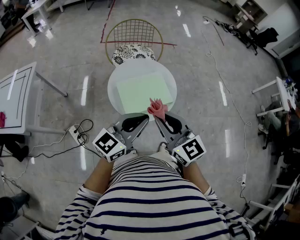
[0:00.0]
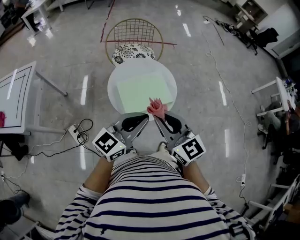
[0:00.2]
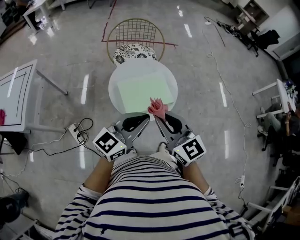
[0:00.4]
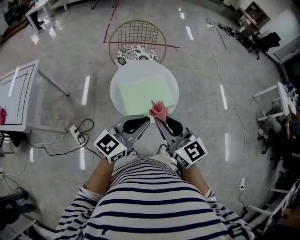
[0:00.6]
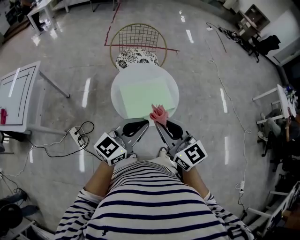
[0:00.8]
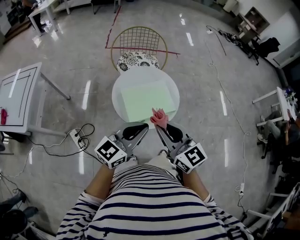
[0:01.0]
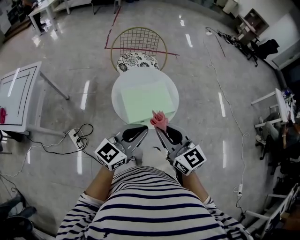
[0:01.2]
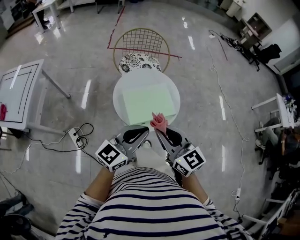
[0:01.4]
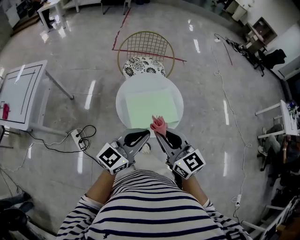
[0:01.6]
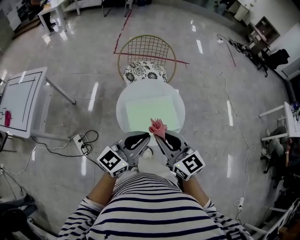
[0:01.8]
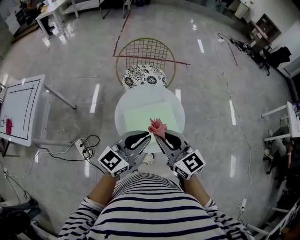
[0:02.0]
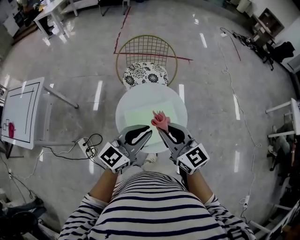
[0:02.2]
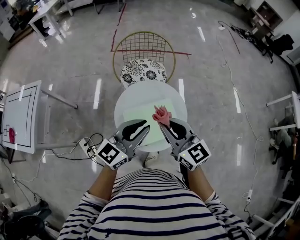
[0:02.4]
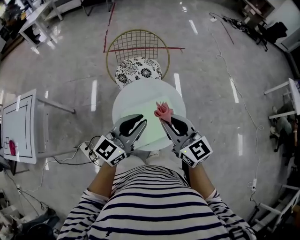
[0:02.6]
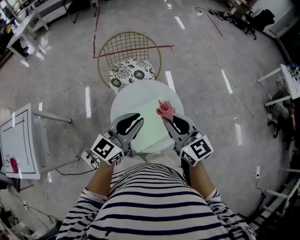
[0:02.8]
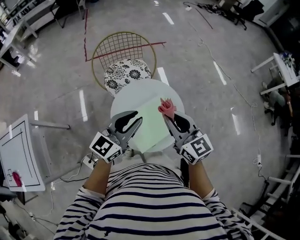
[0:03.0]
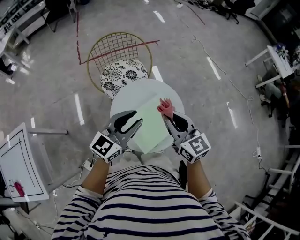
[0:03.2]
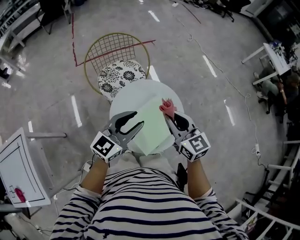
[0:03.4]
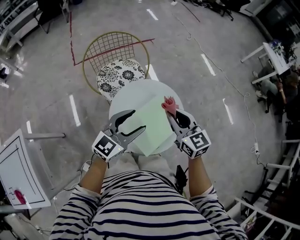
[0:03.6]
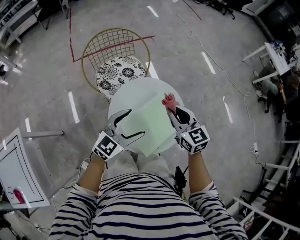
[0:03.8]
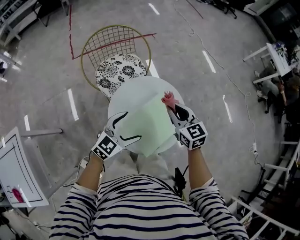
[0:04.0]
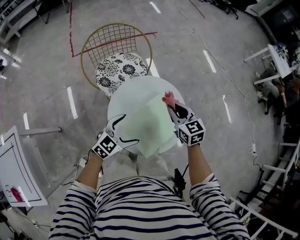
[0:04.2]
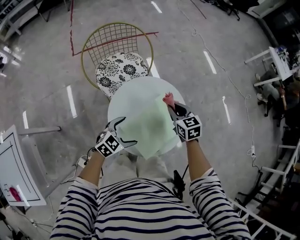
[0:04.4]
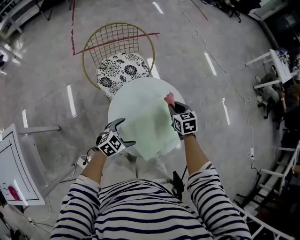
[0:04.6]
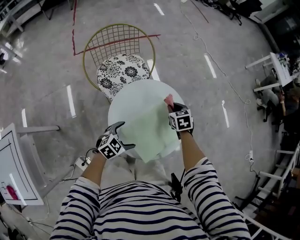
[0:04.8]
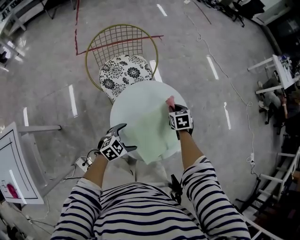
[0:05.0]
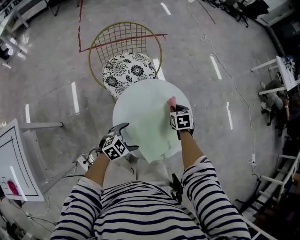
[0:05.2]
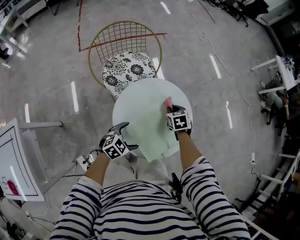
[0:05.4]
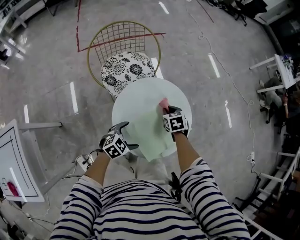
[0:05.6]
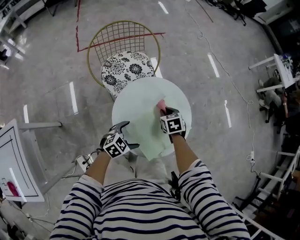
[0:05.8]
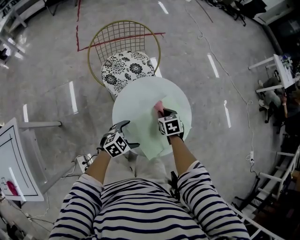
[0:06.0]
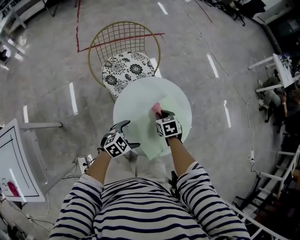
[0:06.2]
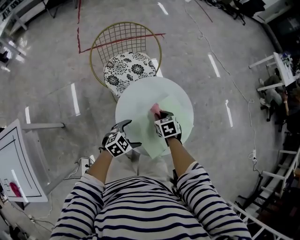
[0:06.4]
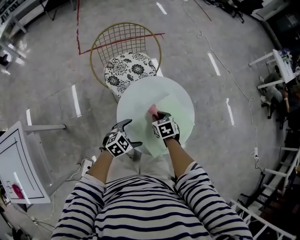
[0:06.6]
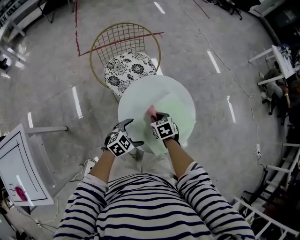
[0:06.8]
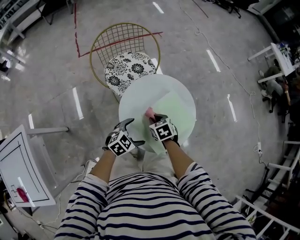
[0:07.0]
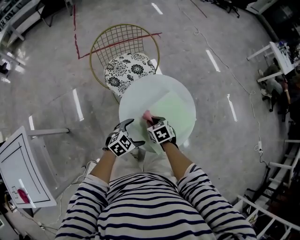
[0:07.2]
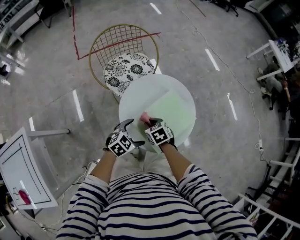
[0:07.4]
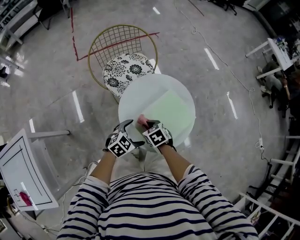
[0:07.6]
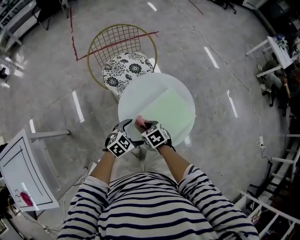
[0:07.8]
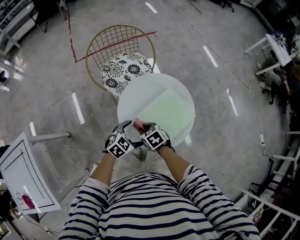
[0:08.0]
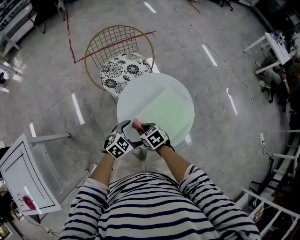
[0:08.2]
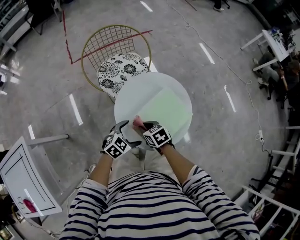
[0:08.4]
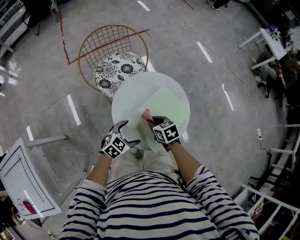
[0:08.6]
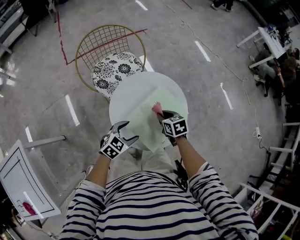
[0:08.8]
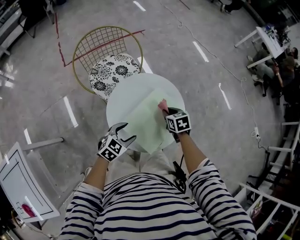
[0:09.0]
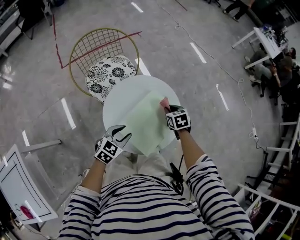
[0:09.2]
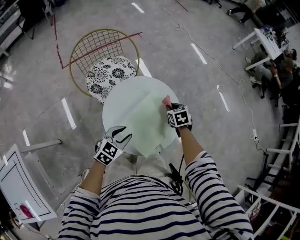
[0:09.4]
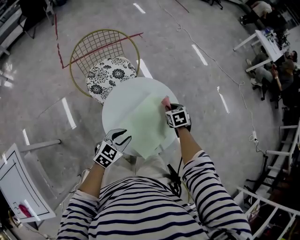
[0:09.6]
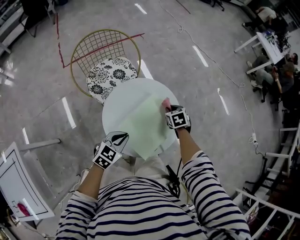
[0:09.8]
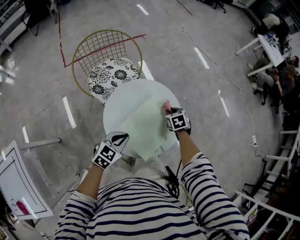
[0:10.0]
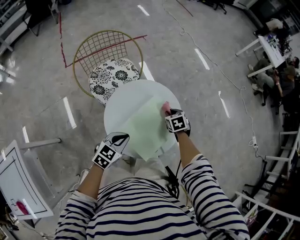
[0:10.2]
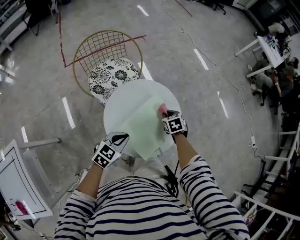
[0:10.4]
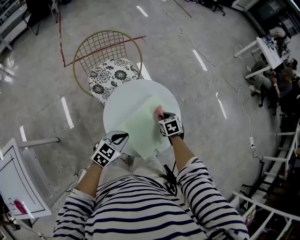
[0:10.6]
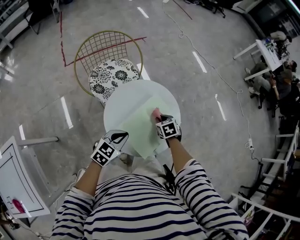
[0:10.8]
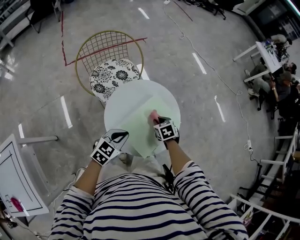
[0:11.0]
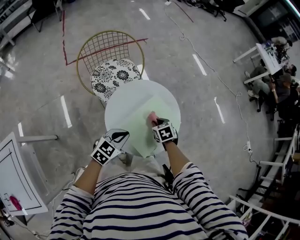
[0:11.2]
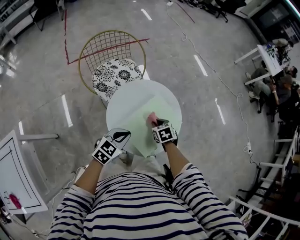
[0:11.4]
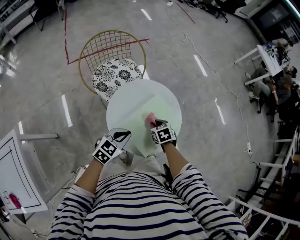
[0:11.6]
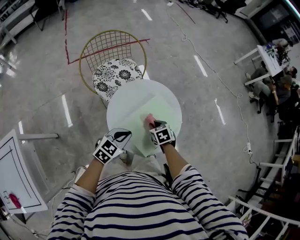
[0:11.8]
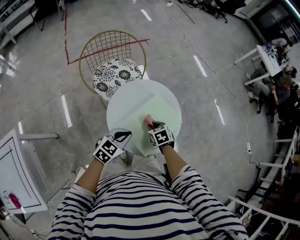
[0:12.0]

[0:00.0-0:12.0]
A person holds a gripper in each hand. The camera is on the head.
0:00.0 to 0:01.6: The grippers make only small movements.
0:01.6 to 0:03.0: Both grippers travel together forward, about 20 cm. The right gripper swivels roughly 20 degrees.
0:03.0 to 0:04.4: The right gripper travels downward and forward by roughly 25 cm, and swivels roughly 30 degrees; the left gripper travels downward by approximately 25 cm, angles its fingers downward, by some 40 degrees, and opens its fingers.
0:04.4 to 0:06.0: The right gripper shifts some 10 cm downward, and changes its angle by about 20 degrees.
0:06.0 to 0:07.6: The right gripper travels backward and to the left by about 15 cm.
0:07.6 to 0:09.0: The right gripper goes approximately 20 cm to the right and forward, and changes its angle by about 20 degrees. The left gripper closes up.
0:09.0 to 0:10.4: The right gripper shifts by about 5 cm. The left gripper closes up.
0:10.4 to 0:12.0: The right gripper travels backward and to the left by about 15 cm.

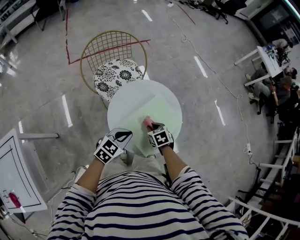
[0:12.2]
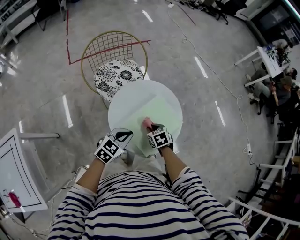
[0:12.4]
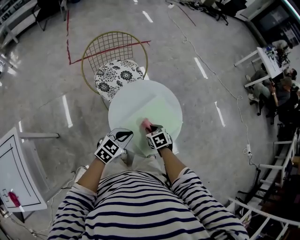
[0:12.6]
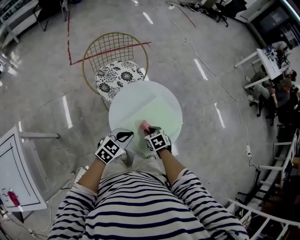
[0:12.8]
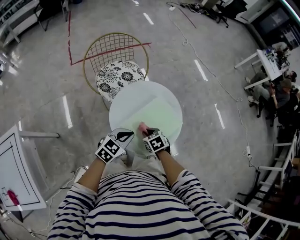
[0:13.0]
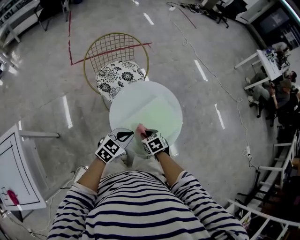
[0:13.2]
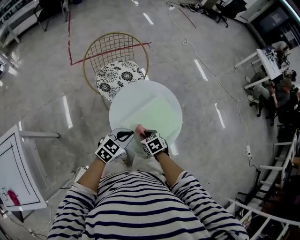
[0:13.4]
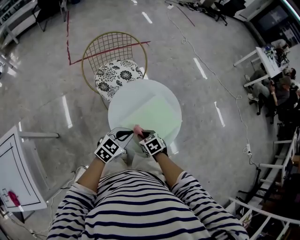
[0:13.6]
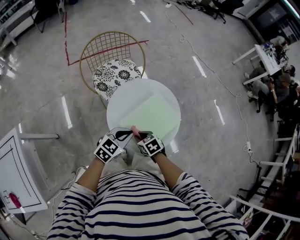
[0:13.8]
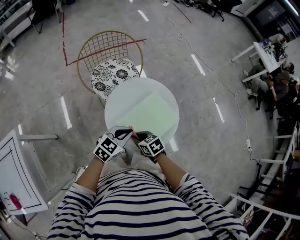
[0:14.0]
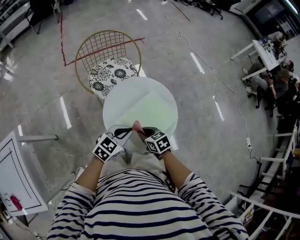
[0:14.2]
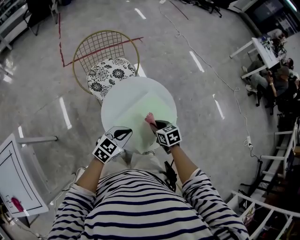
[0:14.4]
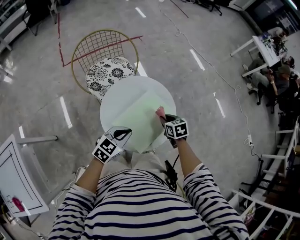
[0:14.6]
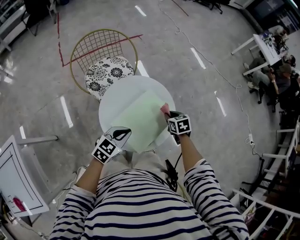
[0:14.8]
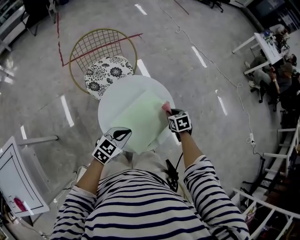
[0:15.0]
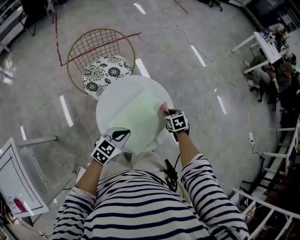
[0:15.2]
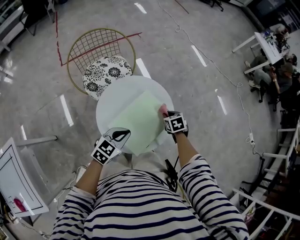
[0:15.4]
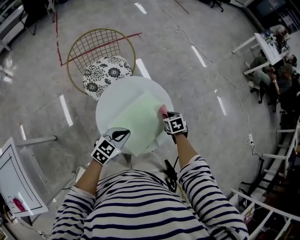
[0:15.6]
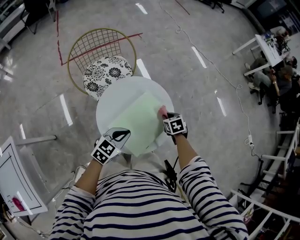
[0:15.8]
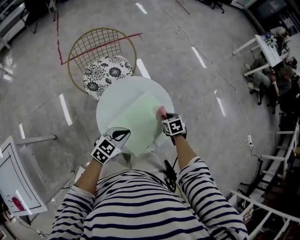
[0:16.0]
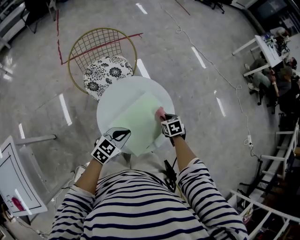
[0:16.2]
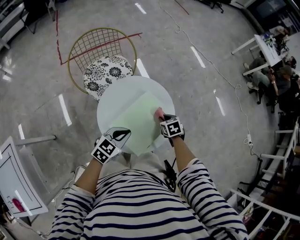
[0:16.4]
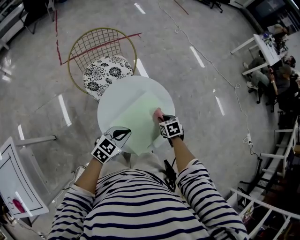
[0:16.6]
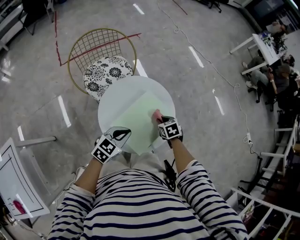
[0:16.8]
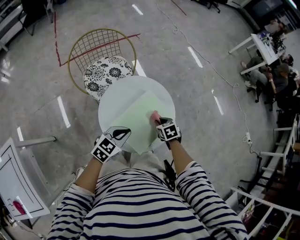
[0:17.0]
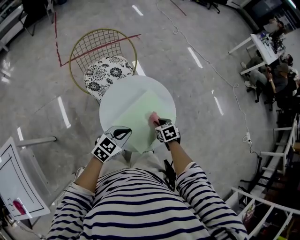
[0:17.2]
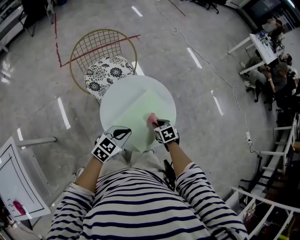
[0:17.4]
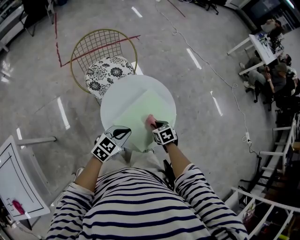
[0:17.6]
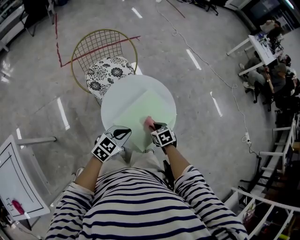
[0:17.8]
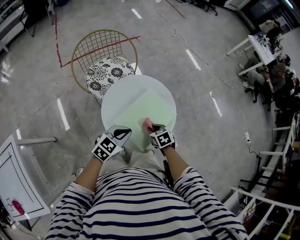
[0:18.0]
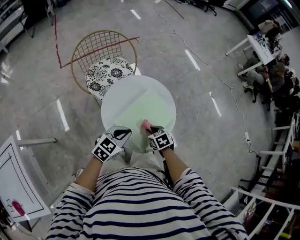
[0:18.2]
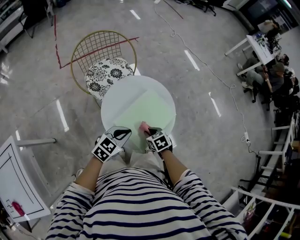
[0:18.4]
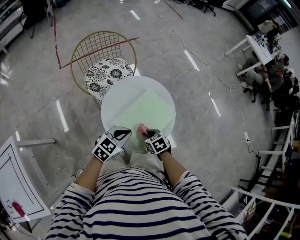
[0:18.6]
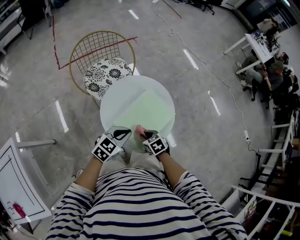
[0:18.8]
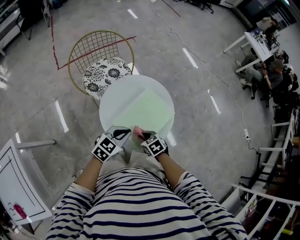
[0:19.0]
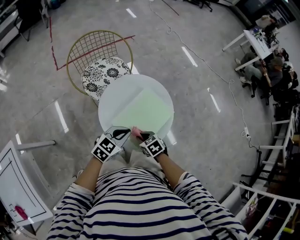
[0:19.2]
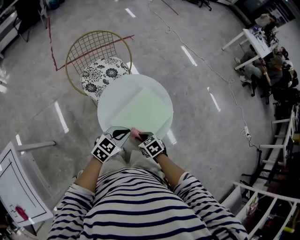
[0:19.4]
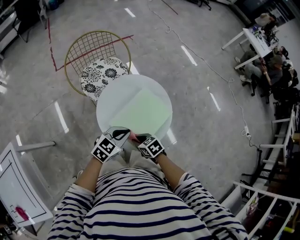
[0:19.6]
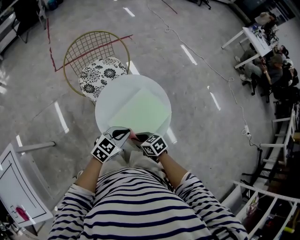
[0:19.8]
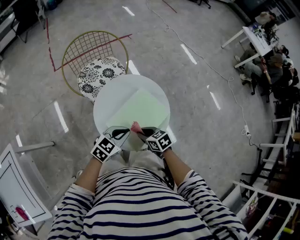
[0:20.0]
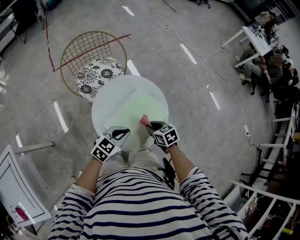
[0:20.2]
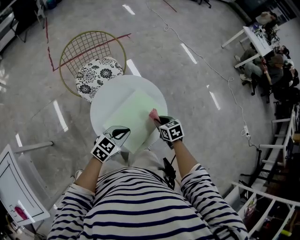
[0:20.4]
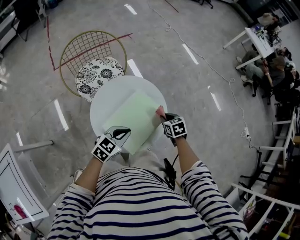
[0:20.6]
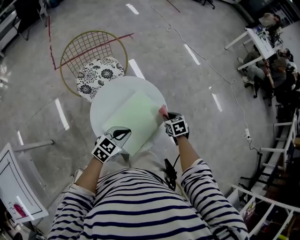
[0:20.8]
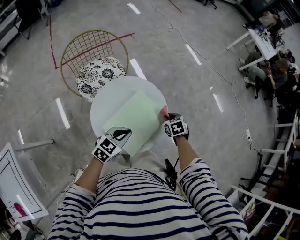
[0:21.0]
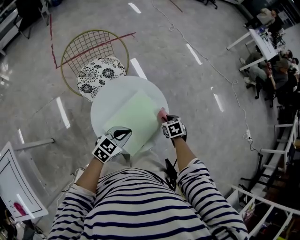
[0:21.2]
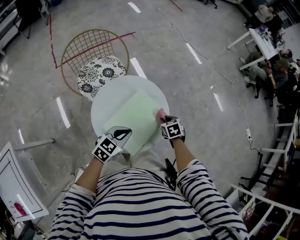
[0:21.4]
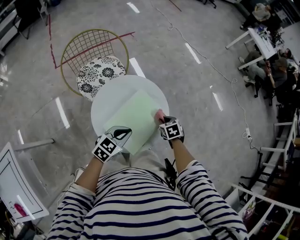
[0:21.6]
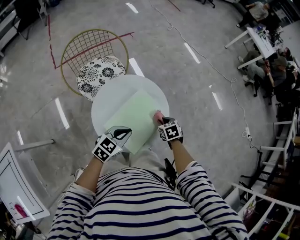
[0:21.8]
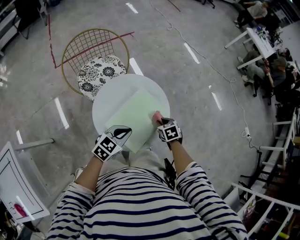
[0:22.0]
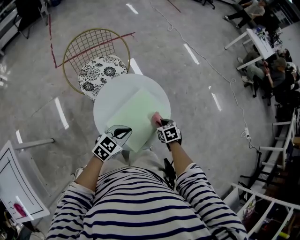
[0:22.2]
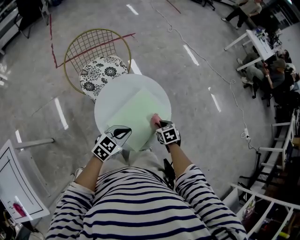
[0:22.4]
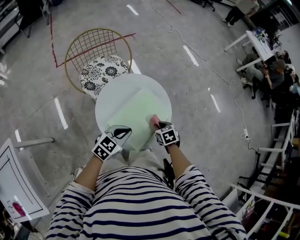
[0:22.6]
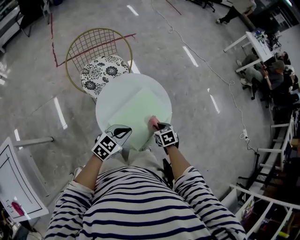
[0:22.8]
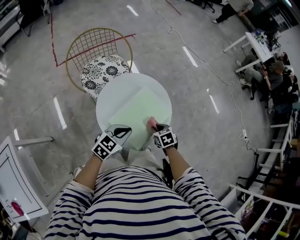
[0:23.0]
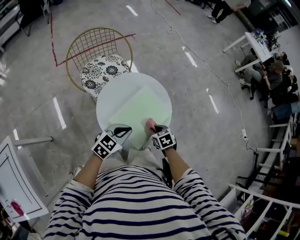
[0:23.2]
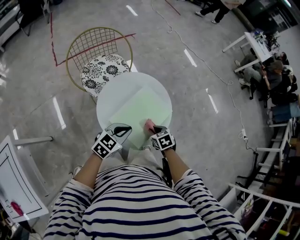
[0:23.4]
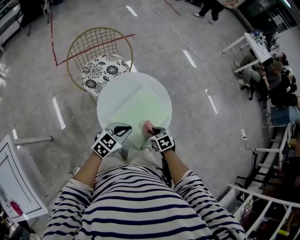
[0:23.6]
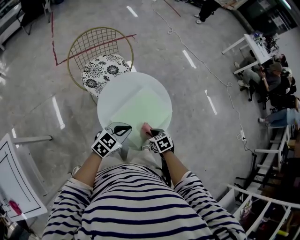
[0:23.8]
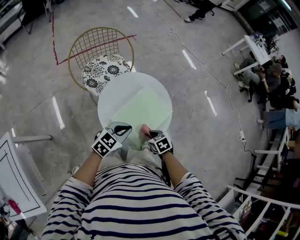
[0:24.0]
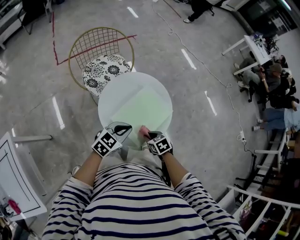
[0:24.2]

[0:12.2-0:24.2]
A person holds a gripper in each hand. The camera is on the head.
0:12.2 to 0:13.8: The right gripper shifts approximately 10 cm backward and to the left.
0:13.8 to 0:15.2: The left gripper moves some 5 cm, while the right gripper shifts about 25 cm to the right and forward, and rotates roughly 20 degrees.
0:15.2 to 0:16.6: The right gripper shifts by approximately 5 cm.
0:16.6 to 0:18.2: The right gripper shifts some 15 cm backward and to the left.
0:18.2 to 0:19.8: The right gripper shifts by about 10 cm, and changes its angle by some 20 degrees.
0:19.8 to 0:21.2: The right gripper changes place by about 25 cm, and changes its angle by some 30 degrees. The left gripper shifts by about 5 cm.
0:21.2 to 0:22.6: The right gripper goes some 10 cm backward and to the left.
0:22.6 to 0:24.2: The right gripper shifts about 10 cm backward and to the left.
